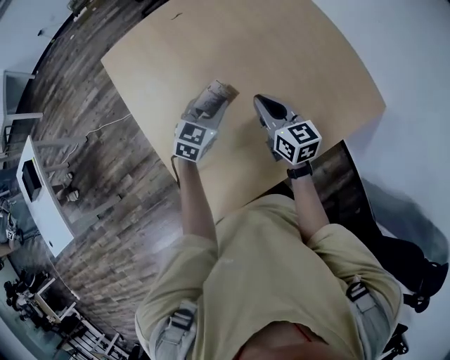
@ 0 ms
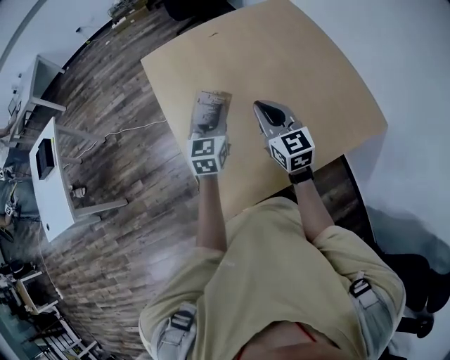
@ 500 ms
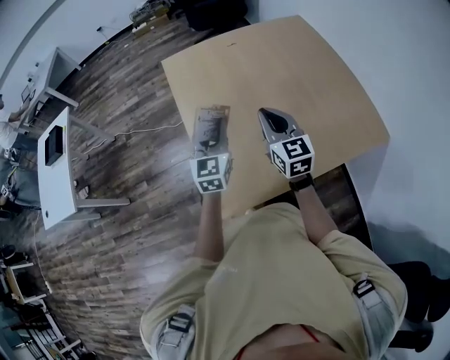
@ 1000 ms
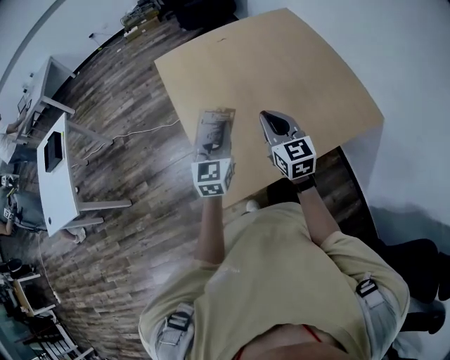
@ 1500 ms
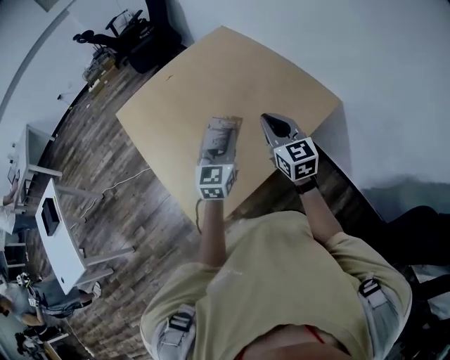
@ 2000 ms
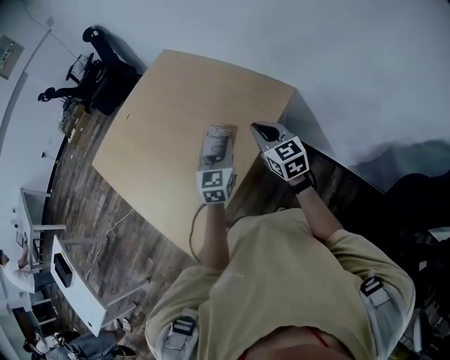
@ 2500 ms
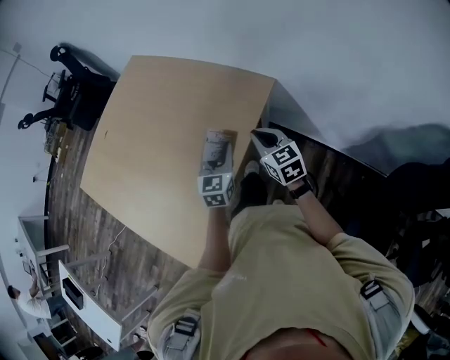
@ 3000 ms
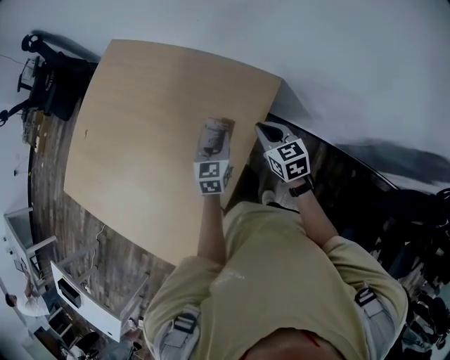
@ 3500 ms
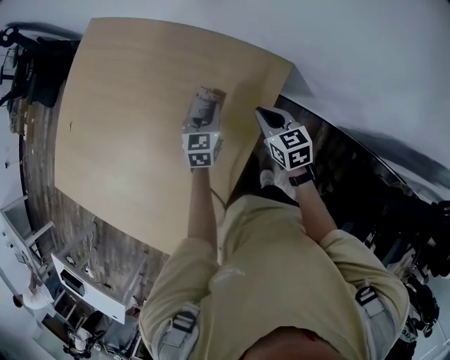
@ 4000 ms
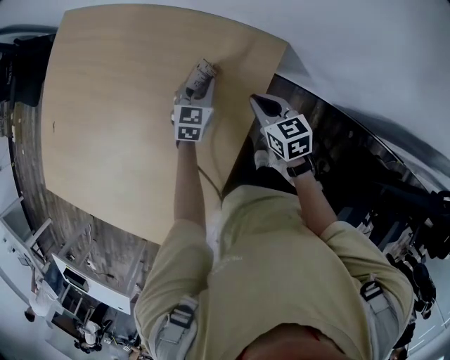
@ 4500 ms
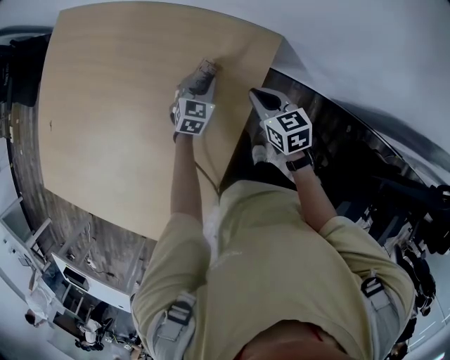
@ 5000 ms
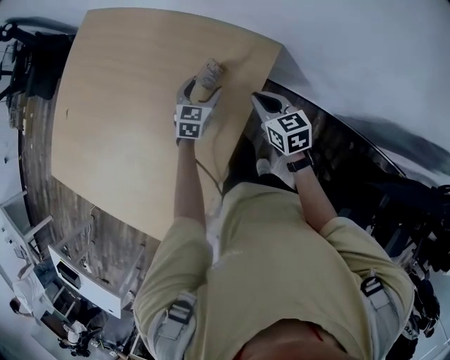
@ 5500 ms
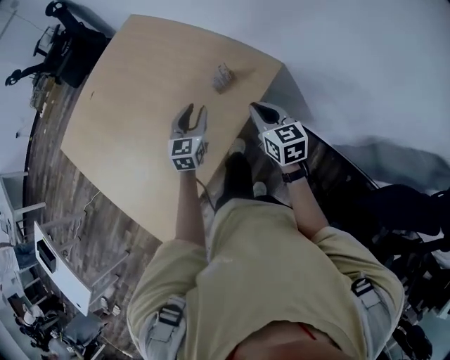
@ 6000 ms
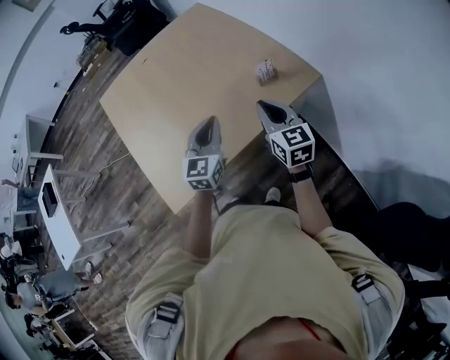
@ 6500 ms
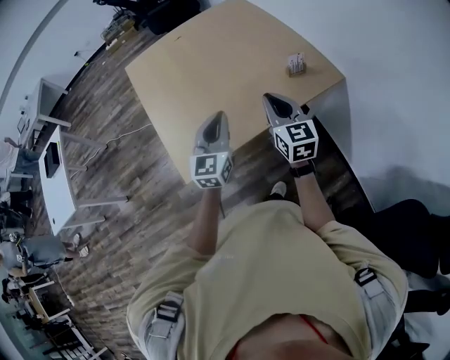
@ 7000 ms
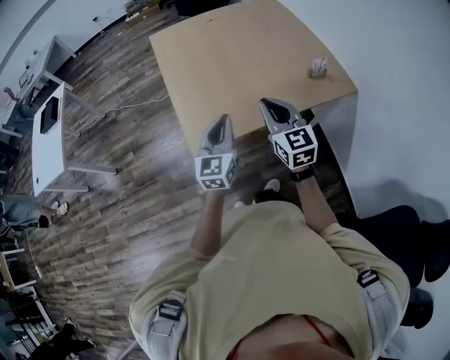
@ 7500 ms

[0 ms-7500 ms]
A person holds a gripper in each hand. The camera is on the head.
0 ms to 2000 ms: Both grippers travel together backward, upward and to the right, approximately 25 cm. The right gripper changes its angle by some 20 degrees; the left gripper swivels about 20 degrees.
2000 ms to 4000 ms: The right gripper travels to the right, downward and forward by about 40 cm, and swivels roughly 40 degrees. Meanwhile the left gripper goes about 50 cm forward, downward and to the right, and changes its angle by approximately 30 degrees.
4000 ms to 5500 ms: The left gripper goes downward and returns, about 10 cm each way, and opens.
5500 ms to 7500 ms: The two grippers travel together, approximately 50 cm. The right gripper changes its angle by approximately 50 degrees, while the left gripper tips its fingers upward by roughly 30 degrees, and closes its fingers.

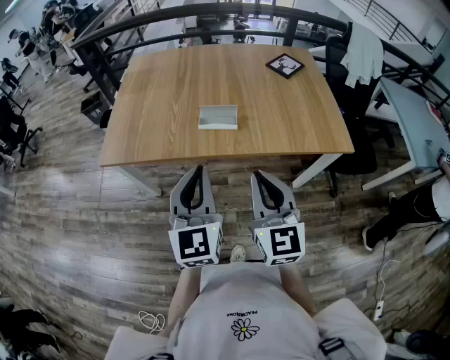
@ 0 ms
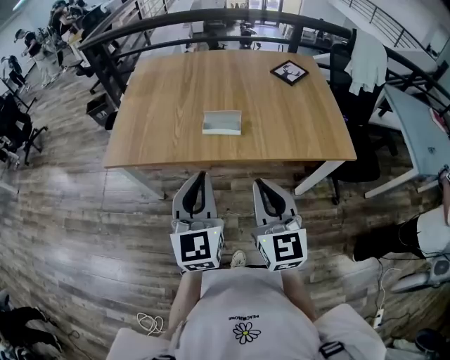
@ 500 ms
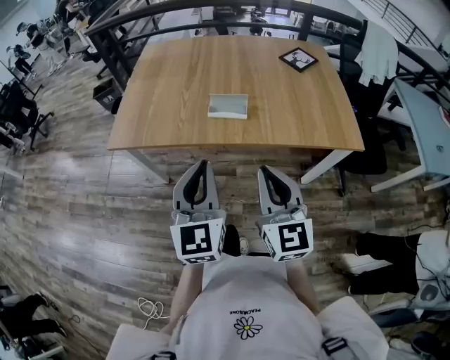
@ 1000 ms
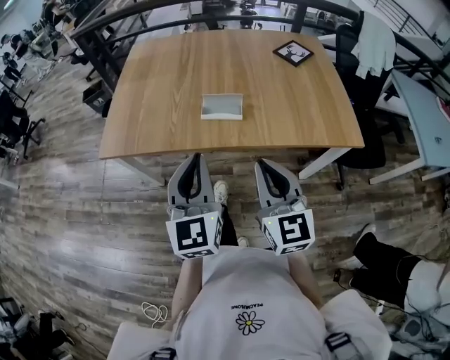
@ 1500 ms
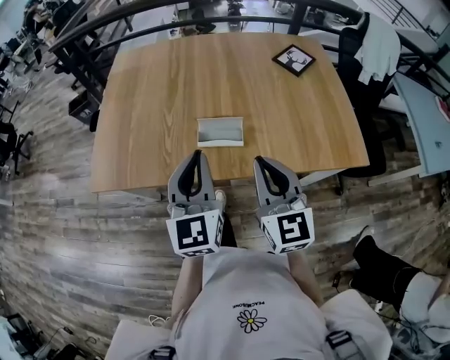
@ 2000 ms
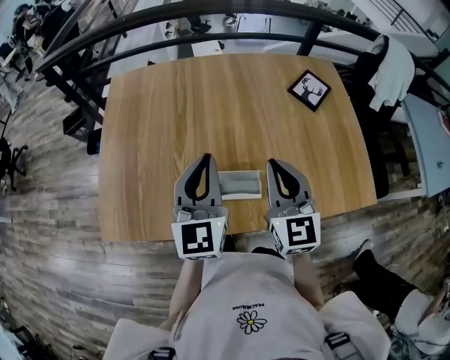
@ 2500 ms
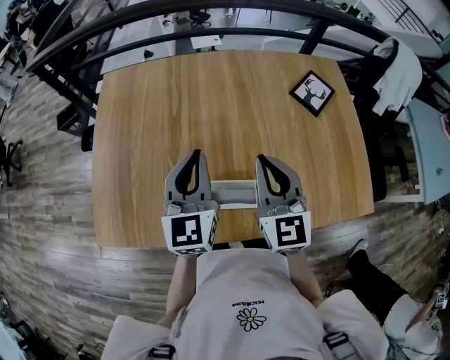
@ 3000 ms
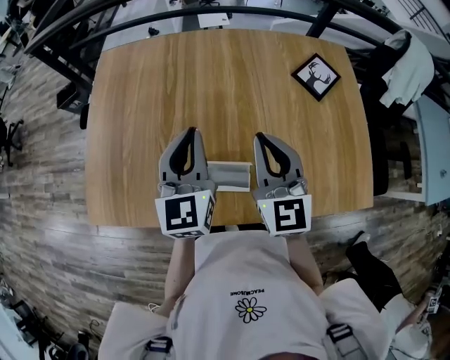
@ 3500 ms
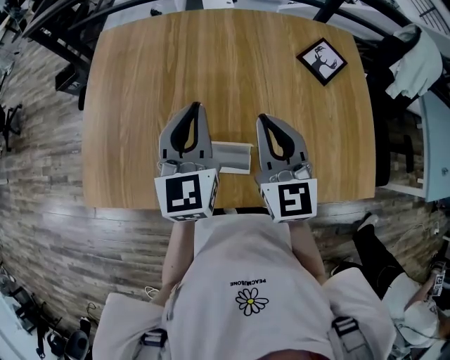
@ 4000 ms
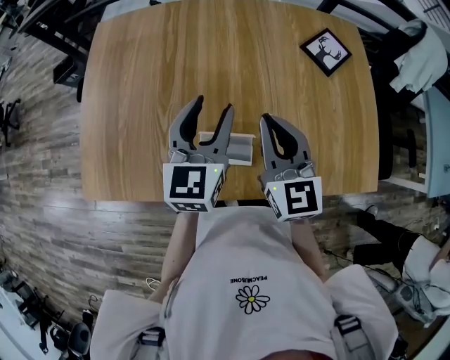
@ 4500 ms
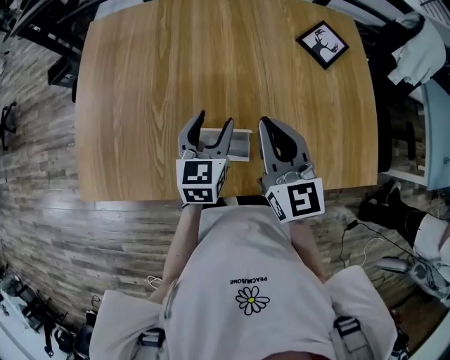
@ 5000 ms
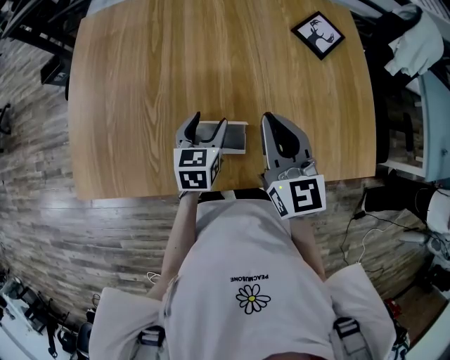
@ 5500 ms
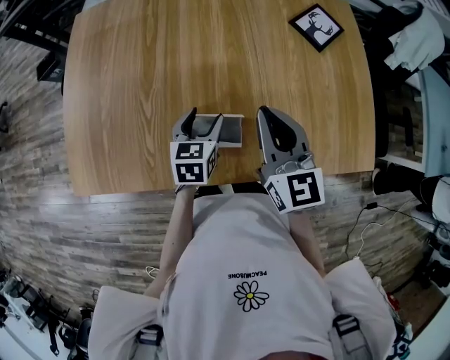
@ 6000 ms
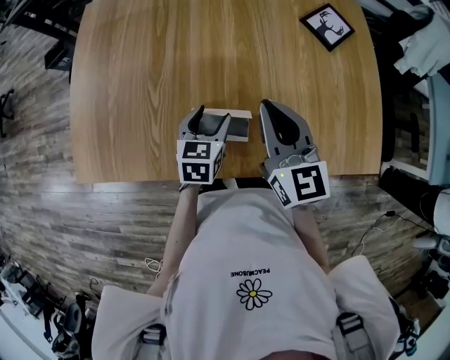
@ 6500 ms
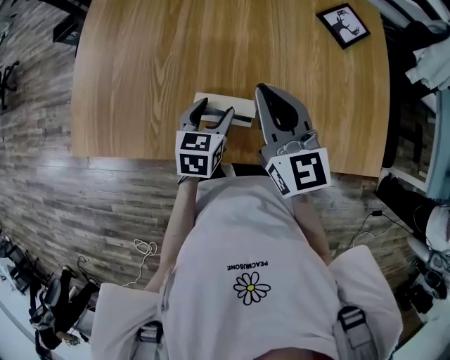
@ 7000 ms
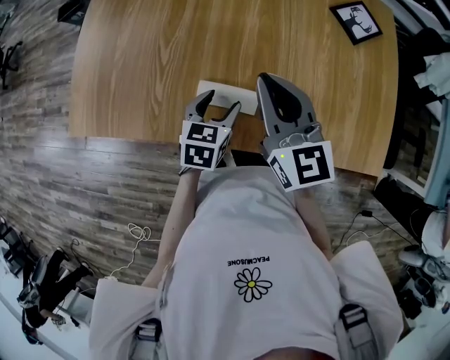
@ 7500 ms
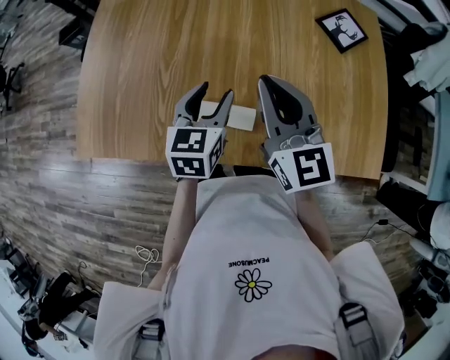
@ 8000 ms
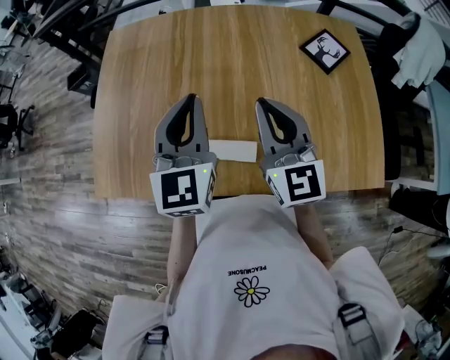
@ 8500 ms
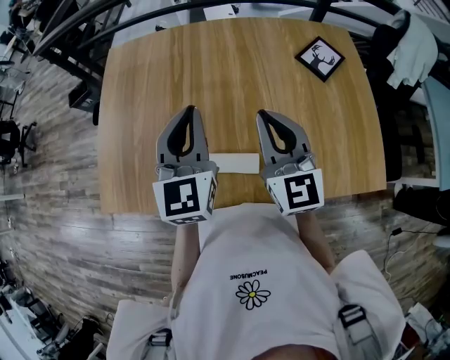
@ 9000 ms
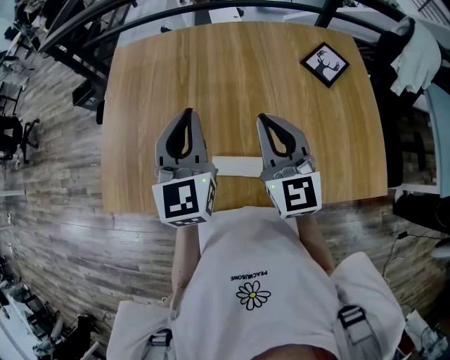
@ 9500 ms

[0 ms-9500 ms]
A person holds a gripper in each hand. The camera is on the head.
0 ms to 2000 ms: The grippers both shift forward by approximately 15 cm.
2000 ms to 4000 ms: The two grippers go approximately 25 cm forward.
4000 ms to 5500 ms: The right gripper moves about 5 cm; the left gripper moves downward, about 20 cm, swivels roughly 30 degrees, and opens up.
5500 ms to 7500 ms: The left gripper travels backward by approximately 5 cm.
7500 ms to 9500 ms: The left gripper shifts roughly 25 cm upward, tips its fingers upward by about 40 degrees, and closes. The right gripper moves upward, approximately 5 cm.

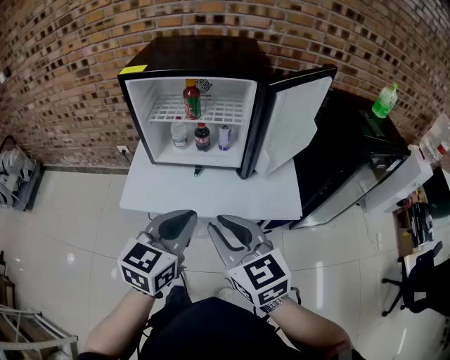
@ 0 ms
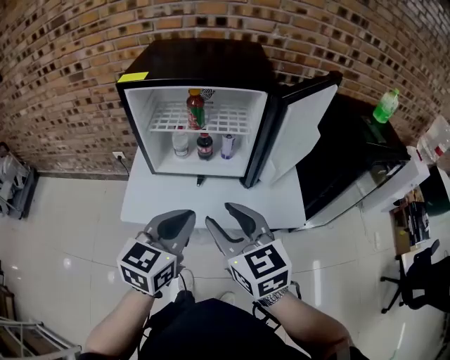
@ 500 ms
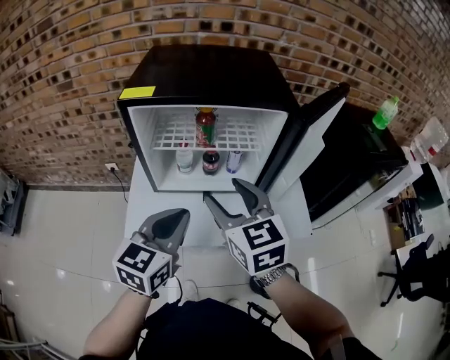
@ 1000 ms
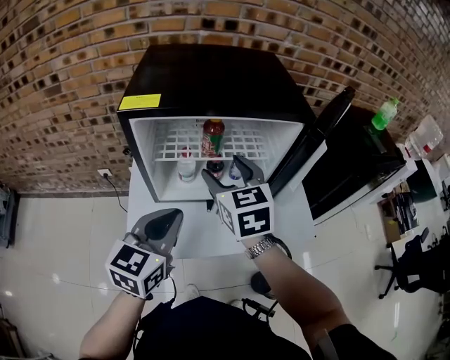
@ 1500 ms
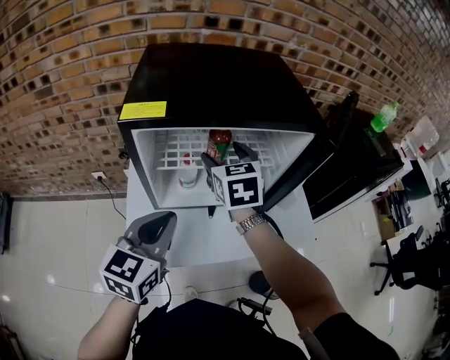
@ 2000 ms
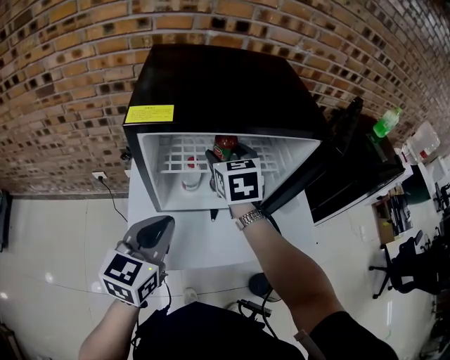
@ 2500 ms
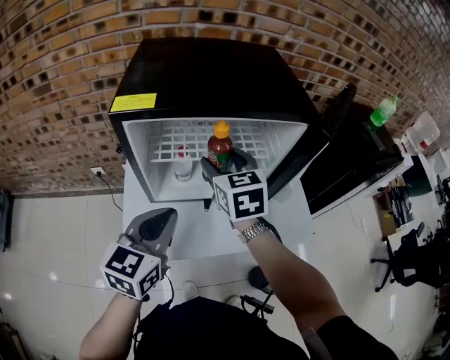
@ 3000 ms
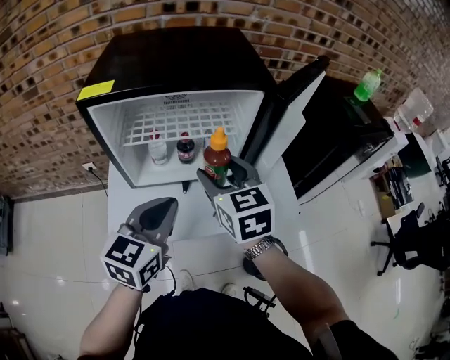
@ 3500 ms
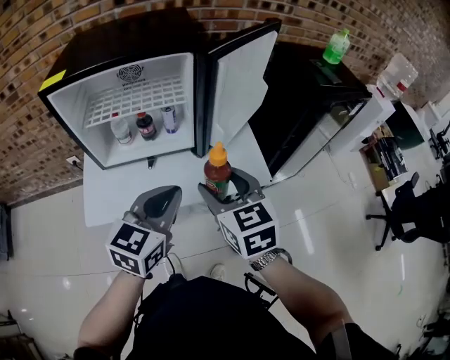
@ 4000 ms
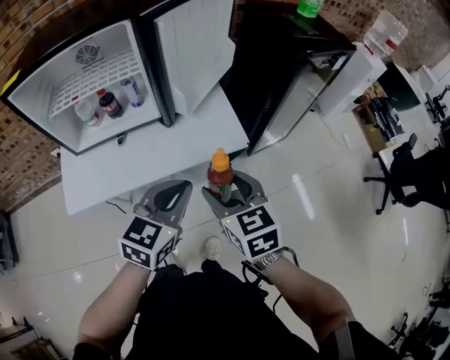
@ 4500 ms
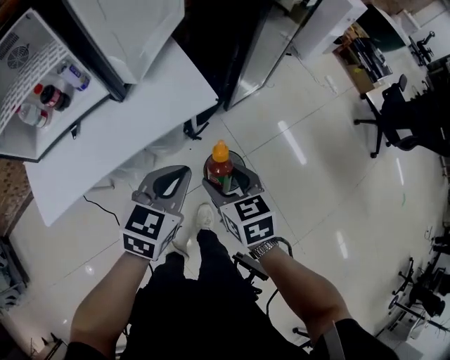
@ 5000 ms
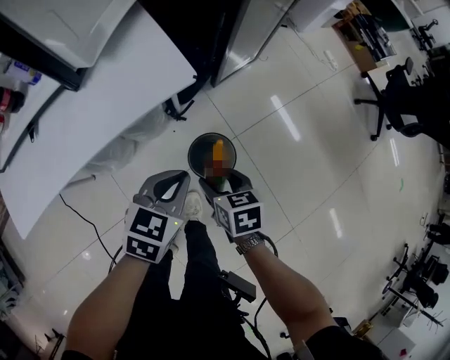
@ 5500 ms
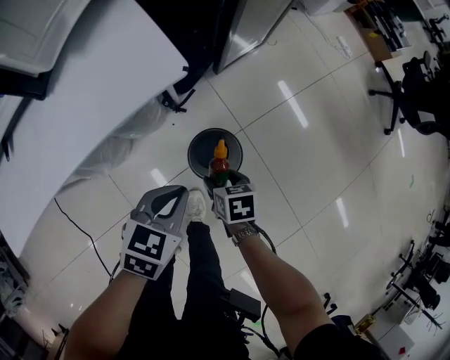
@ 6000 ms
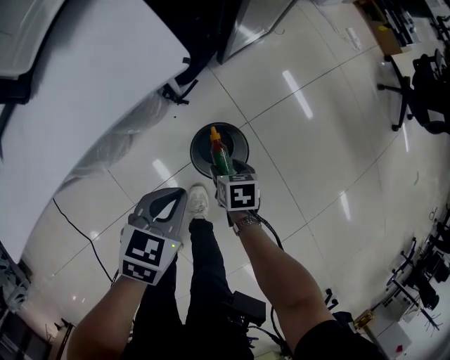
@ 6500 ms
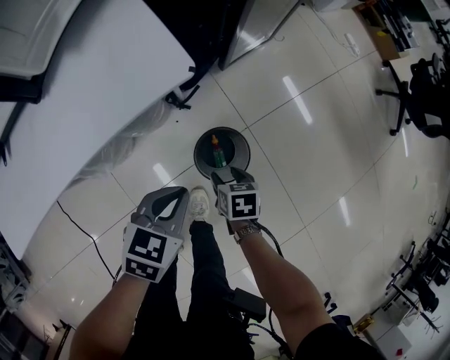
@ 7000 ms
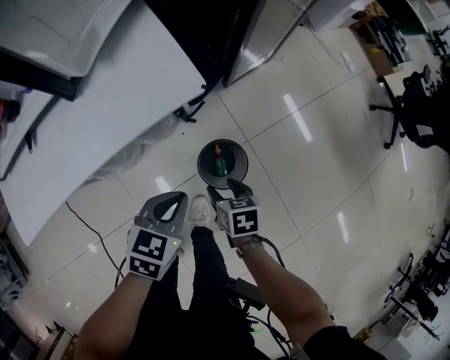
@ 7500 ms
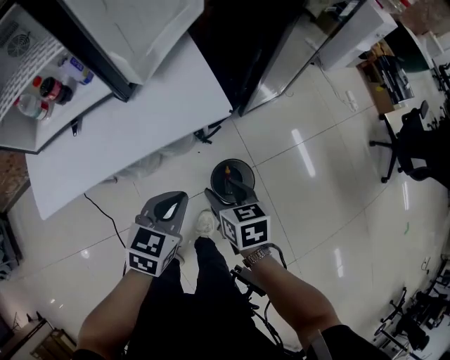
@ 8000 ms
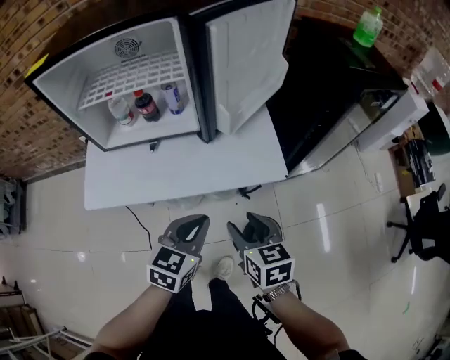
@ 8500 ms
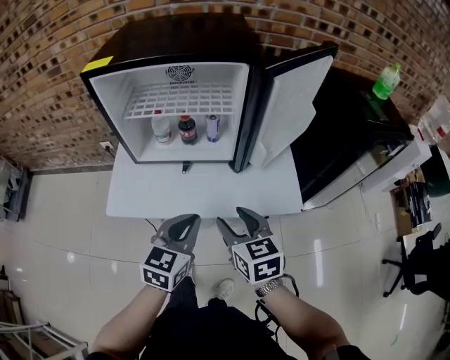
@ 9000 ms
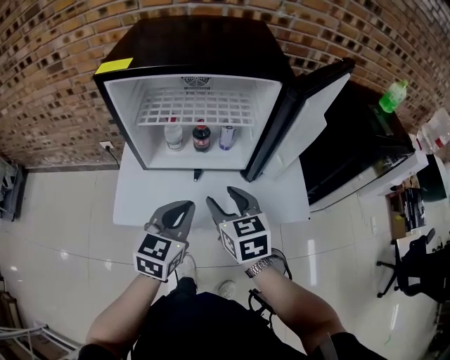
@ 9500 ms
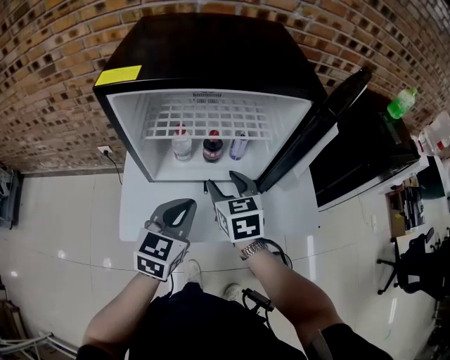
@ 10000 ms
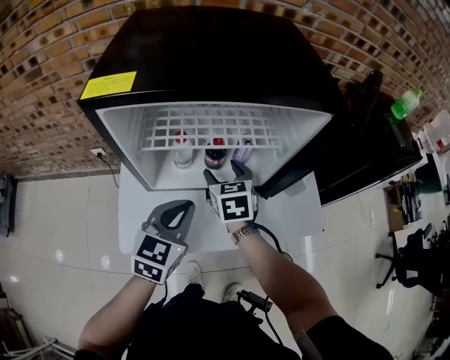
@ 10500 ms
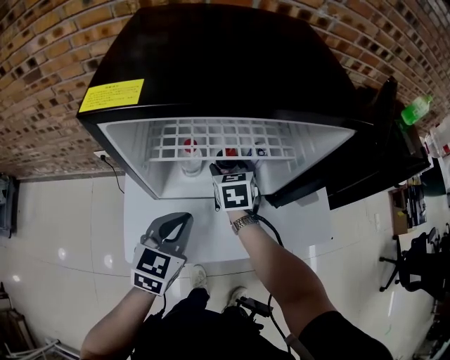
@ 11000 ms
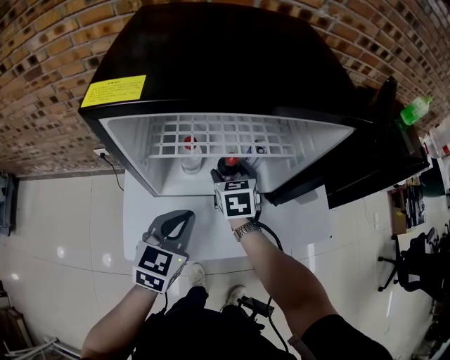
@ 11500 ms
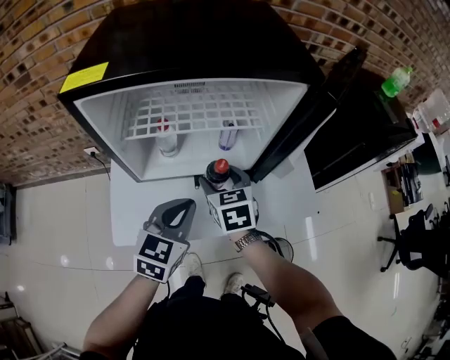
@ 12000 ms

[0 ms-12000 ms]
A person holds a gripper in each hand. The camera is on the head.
0 ms to 2000 ms: The left gripper heads to the left and forward, covering roughly 25 cm. The right gripper heads forward, covering some 40 cm, turns by approximately 30 degrees, and opens its fingers.
2000 ms to 4000 ms: The left gripper travels to the right by some 25 cm. Meanwhile the right gripper heads to the right and backward, covering about 35 cm.
4000 ms to 6000 ms: Both grippers move downward and to the right, about 50 cm. The right gripper points its fingers approximately 40 degrees further downward; the left gripper changes its angle by approximately 40 degrees.
6000 ms to 8000 ms: The left gripper heads upward and to the left, covering some 15 cm. Meanwhile the right gripper is displaced upward by approximately 25 cm, and rotates approximately 20 degrees.
8000 ms to 10000 ms: The left gripper goes roughly 40 cm to the left, upward and forward, and changes its angle by some 30 degrees. Meanwhile the right gripper shifts some 50 cm to the left, forward and upward, and rotates roughly 30 degrees.
10000 ms to 12000 ms: The right gripper travels forward and back again, approximately 15 cm each way.
